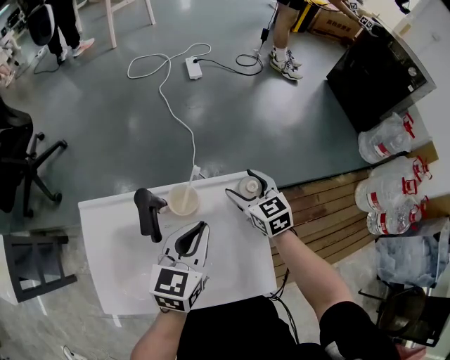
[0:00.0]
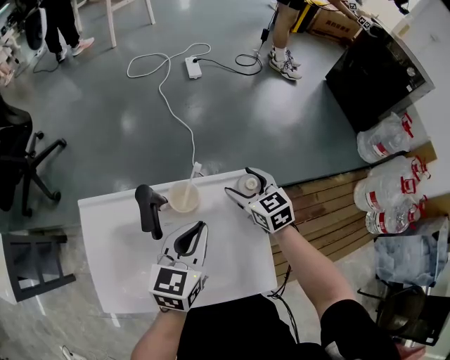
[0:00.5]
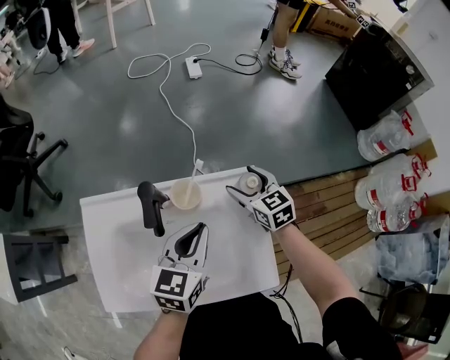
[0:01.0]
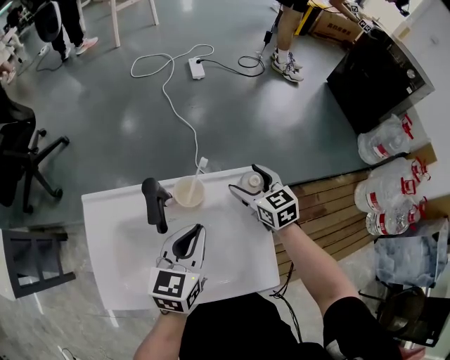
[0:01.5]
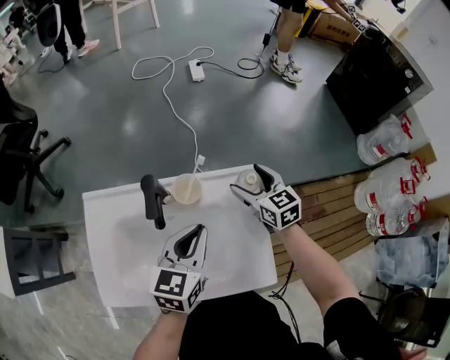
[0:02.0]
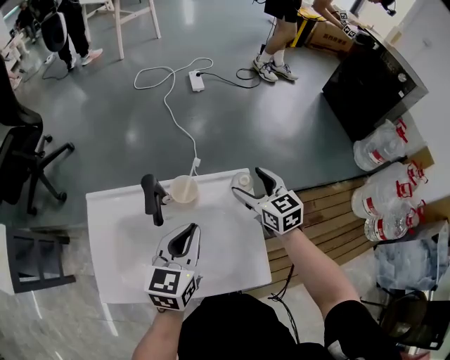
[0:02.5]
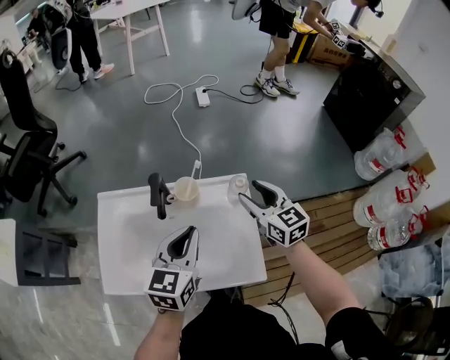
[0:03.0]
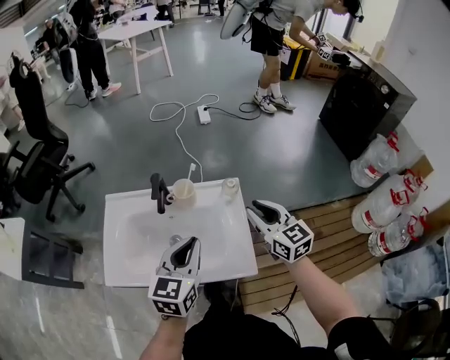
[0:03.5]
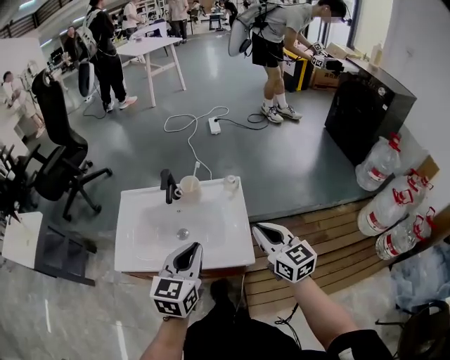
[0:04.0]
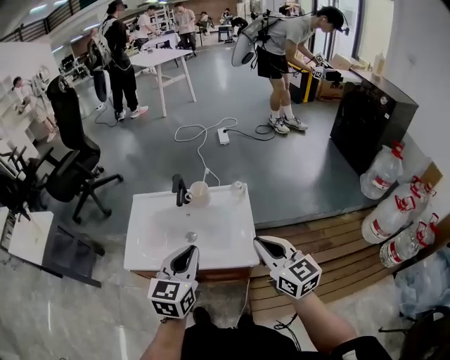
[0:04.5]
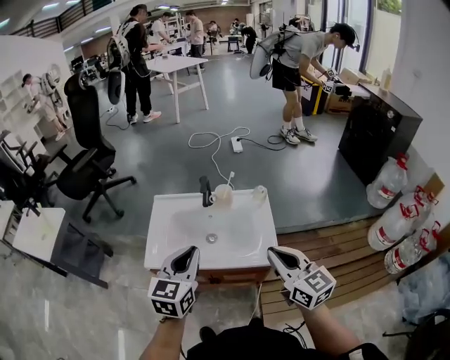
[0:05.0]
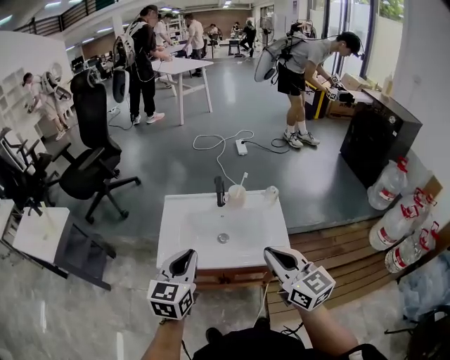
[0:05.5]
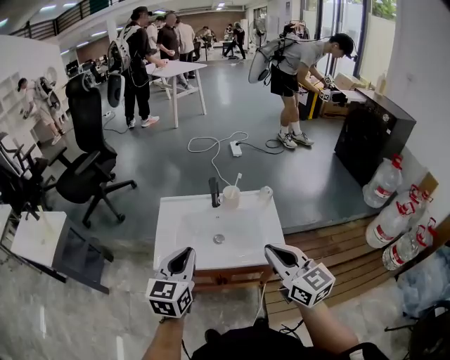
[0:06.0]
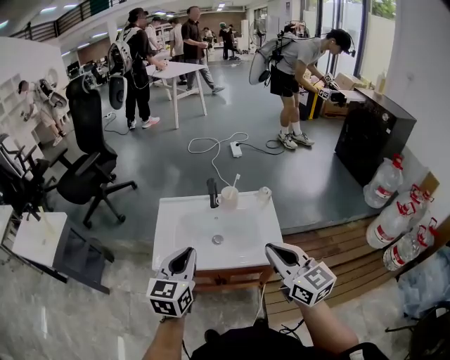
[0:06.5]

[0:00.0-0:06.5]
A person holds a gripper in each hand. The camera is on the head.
0:00.0 to 0:02.0: The grippers make only small movements.
0:02.0 to 0:04.5: Both grippers travel together backward and upward, some 35 cm. The right gripper rotates about 20 degrees, and closes up.
0:04.5 to 0:06.5: The right gripper goes approximately 15 cm to the left and upward. Meanwhile the left gripper goes roughly 15 cm to the left.

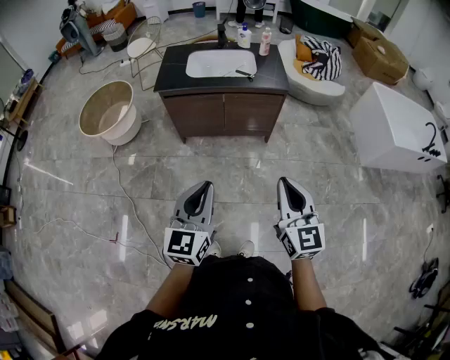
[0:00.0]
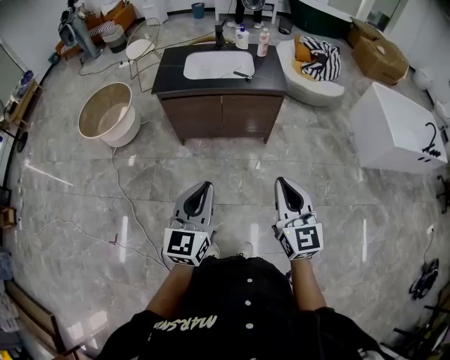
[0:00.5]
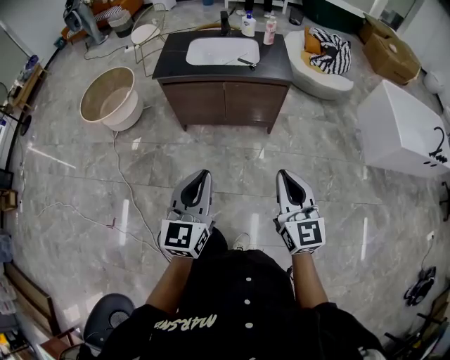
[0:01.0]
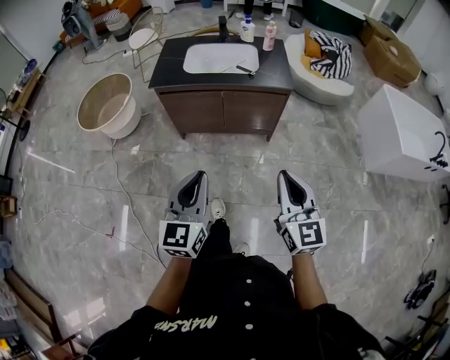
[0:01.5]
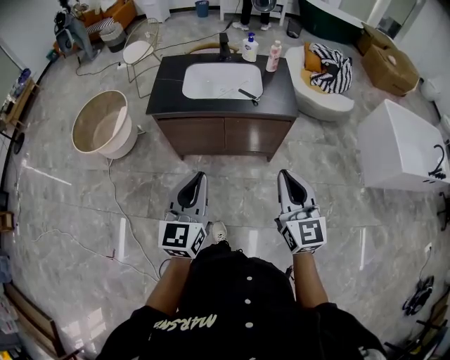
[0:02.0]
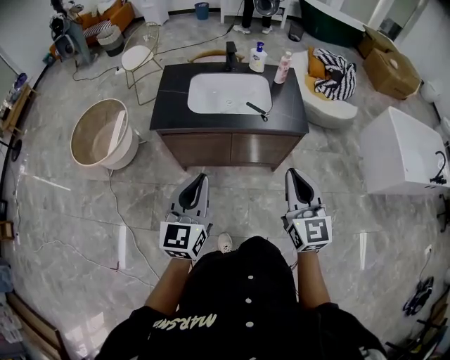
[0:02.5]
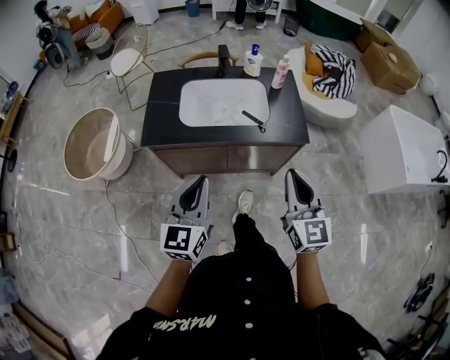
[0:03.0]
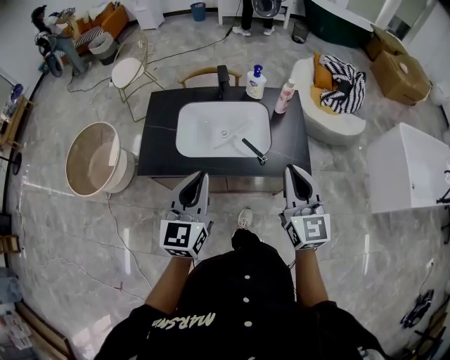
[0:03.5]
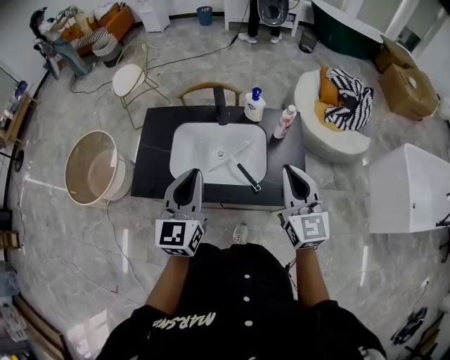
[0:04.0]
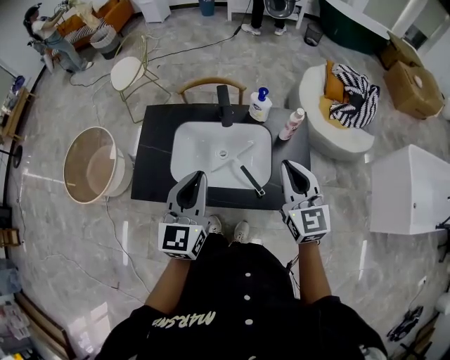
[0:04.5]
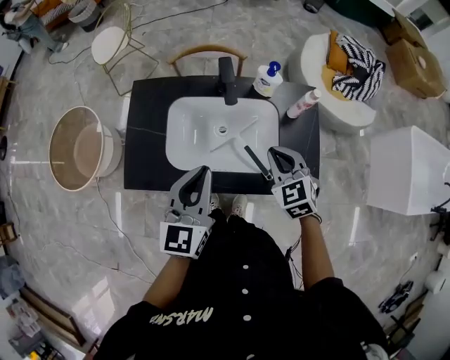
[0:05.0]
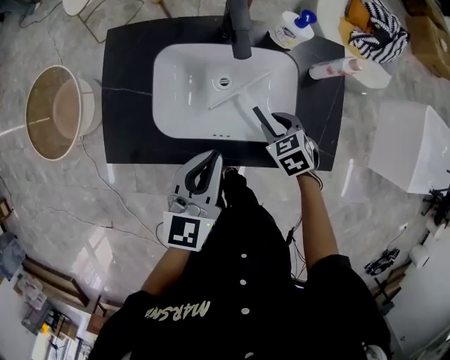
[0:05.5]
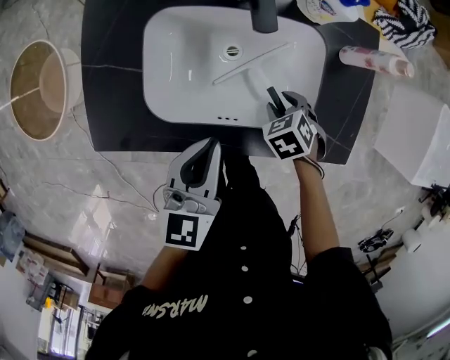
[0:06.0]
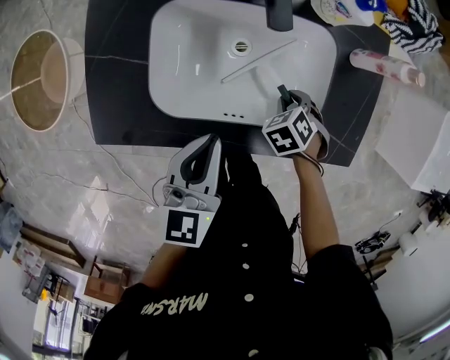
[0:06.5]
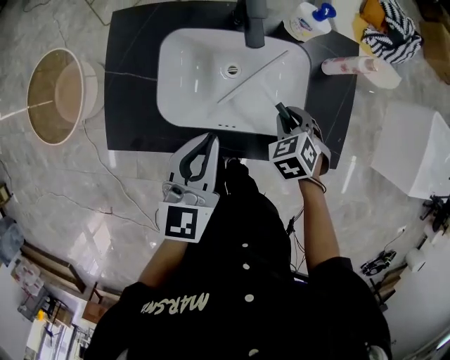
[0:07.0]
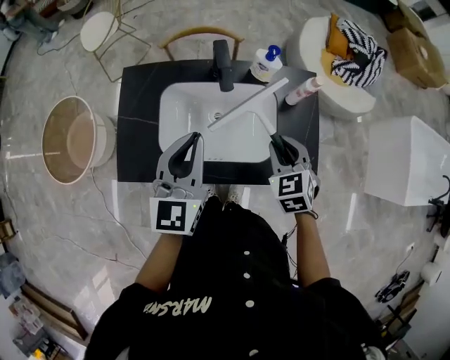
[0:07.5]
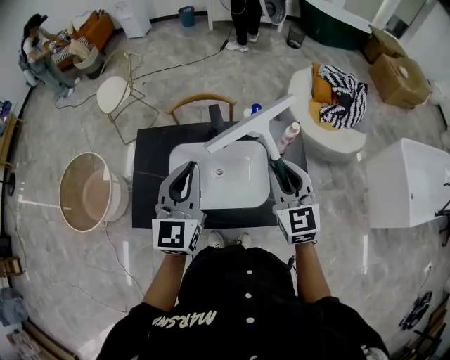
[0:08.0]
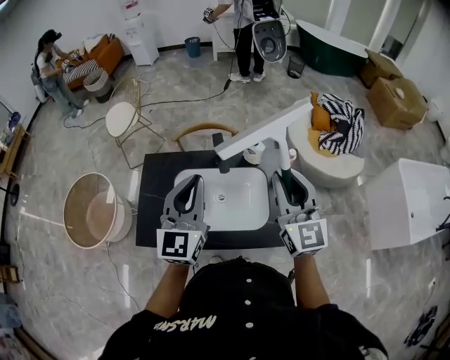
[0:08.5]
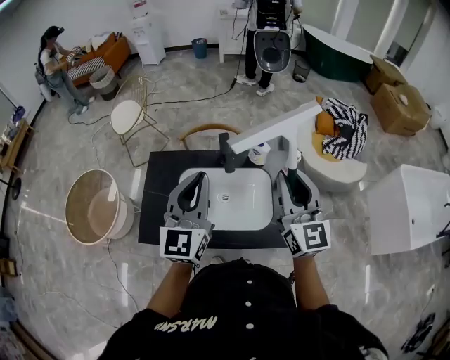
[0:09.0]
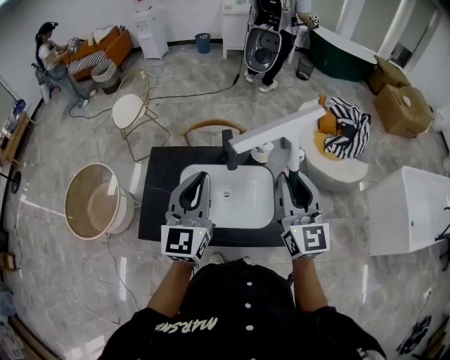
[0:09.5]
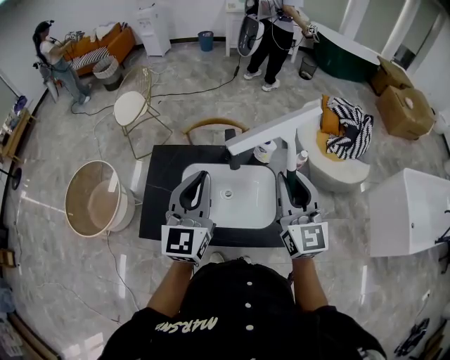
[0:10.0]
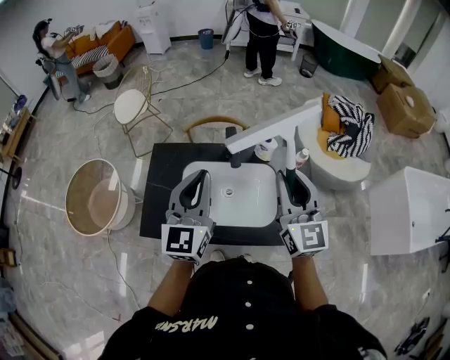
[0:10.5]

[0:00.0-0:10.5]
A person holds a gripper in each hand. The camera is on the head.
0:00.0 to 0:02.0: The grippers both shift forward by approximately 25 cm.
0:02.0 to 0:04.0: The two grippers travel together, forward, approximately 50 cm.
0:04.0 to 0:06.5: The right gripper travels downward by about 40 cm, and tips its fingers downward by approximately 80 degrees. The left gripper is displaced downward by approximately 25 cm, and swivels about 30 degrees.
0:06.5 to 0:08.5: The right gripper goes roughly 50 cm upward, and points its fingers some 90 degrees further upward; the left gripper shifts approximately 30 cm upward, and tips its fingers upward by roughly 30 degrees.
0:08.5 to 0:10.5: There are only small adjustments of the grippers.

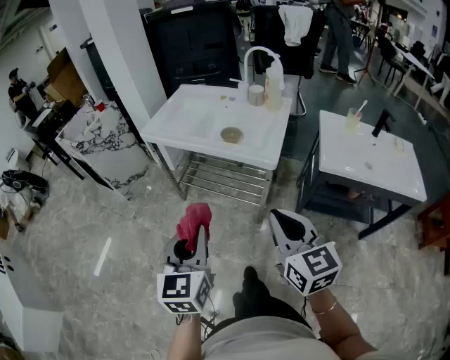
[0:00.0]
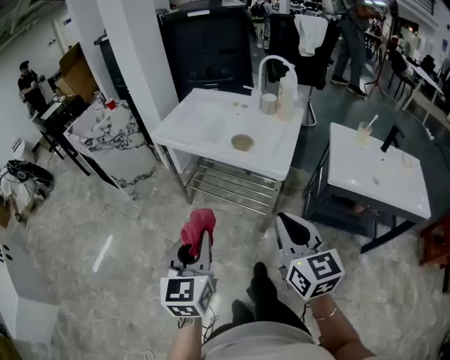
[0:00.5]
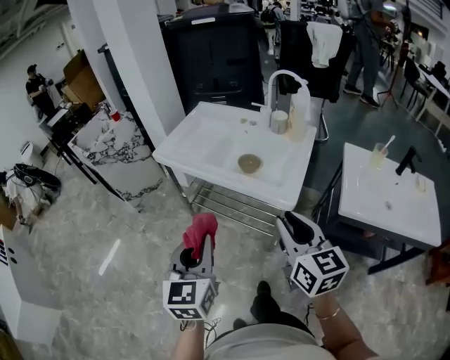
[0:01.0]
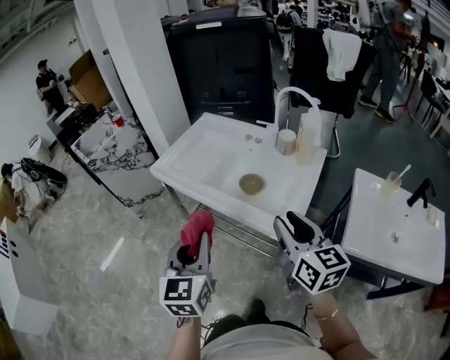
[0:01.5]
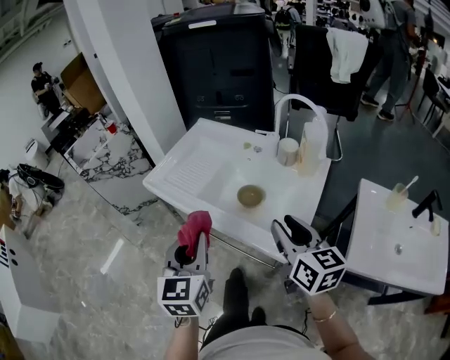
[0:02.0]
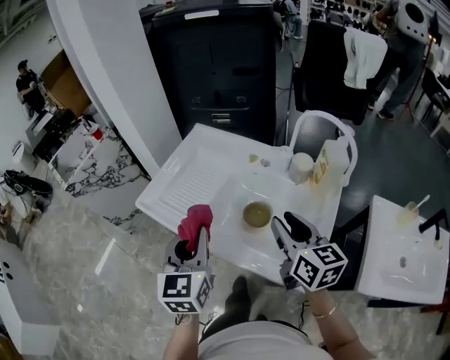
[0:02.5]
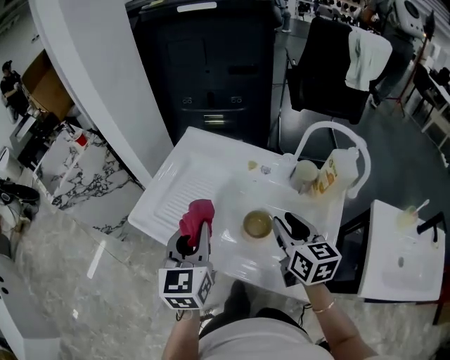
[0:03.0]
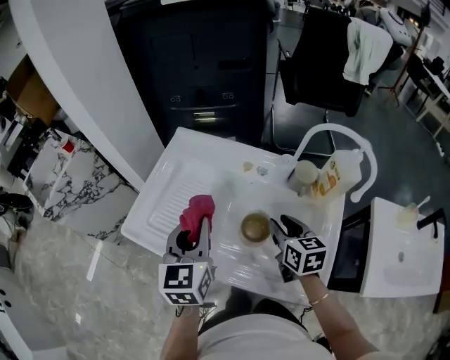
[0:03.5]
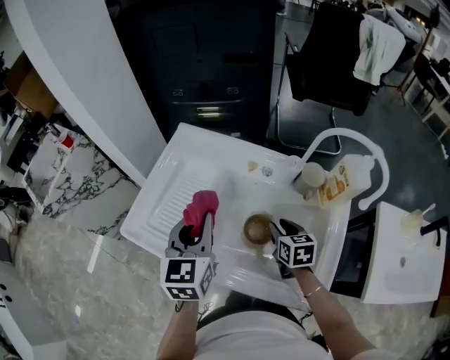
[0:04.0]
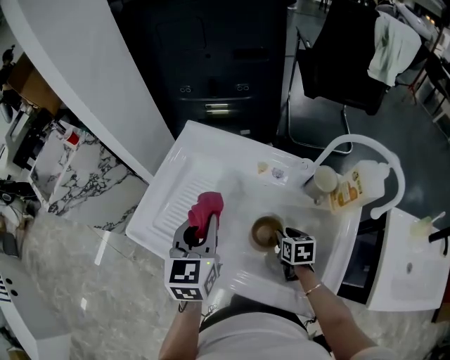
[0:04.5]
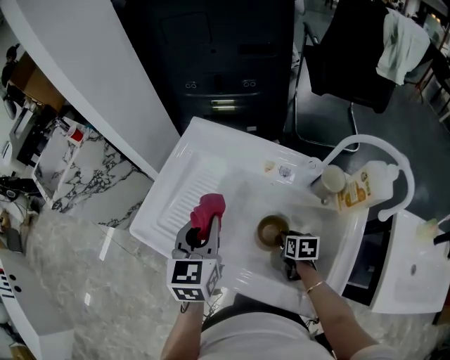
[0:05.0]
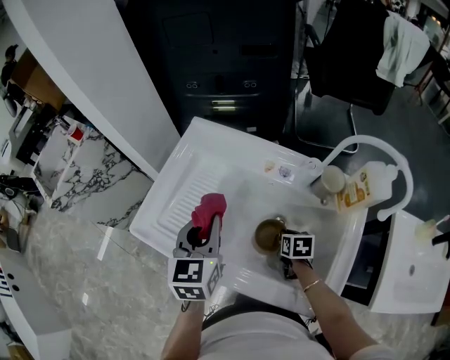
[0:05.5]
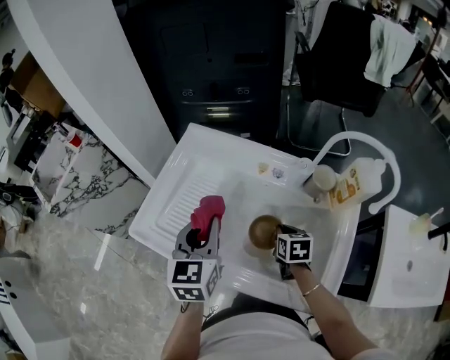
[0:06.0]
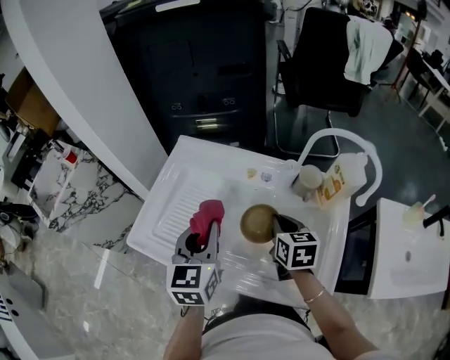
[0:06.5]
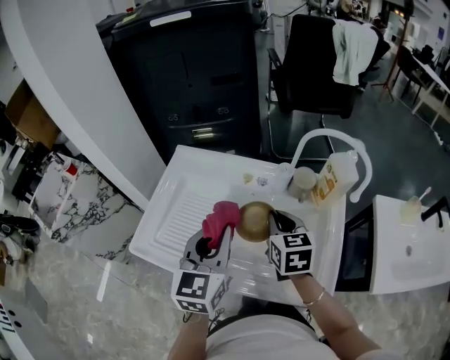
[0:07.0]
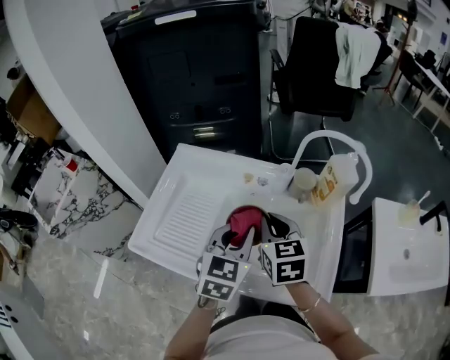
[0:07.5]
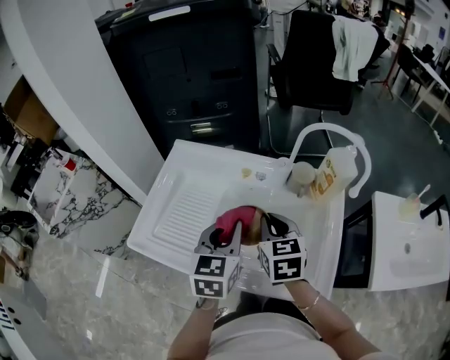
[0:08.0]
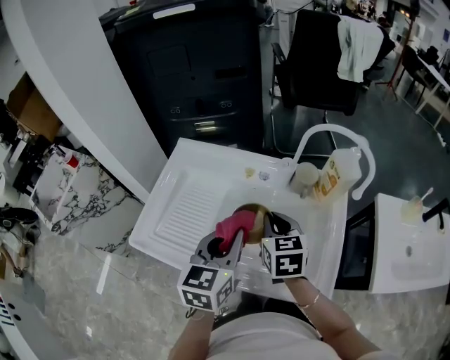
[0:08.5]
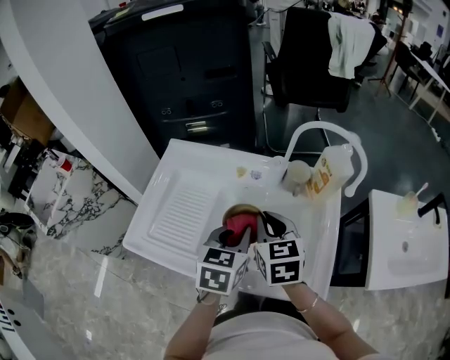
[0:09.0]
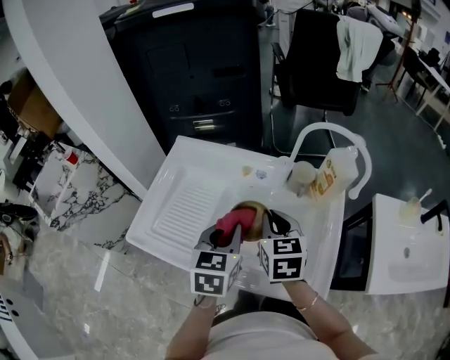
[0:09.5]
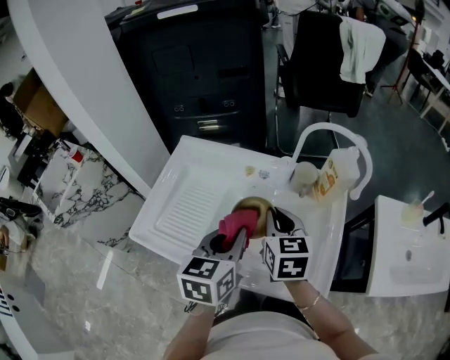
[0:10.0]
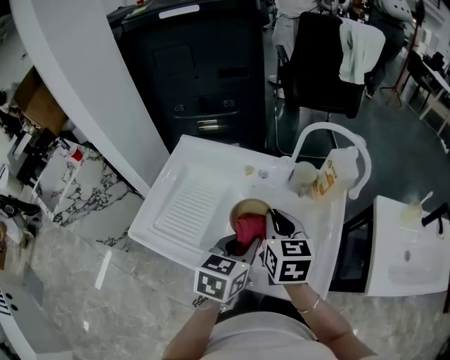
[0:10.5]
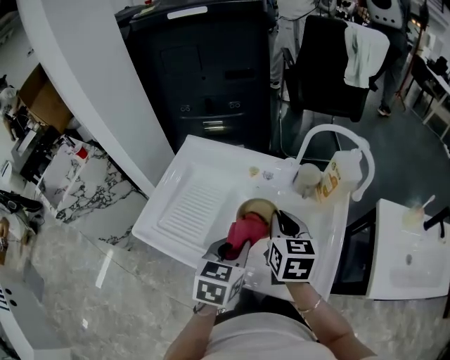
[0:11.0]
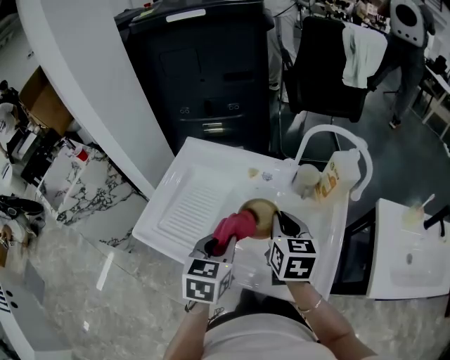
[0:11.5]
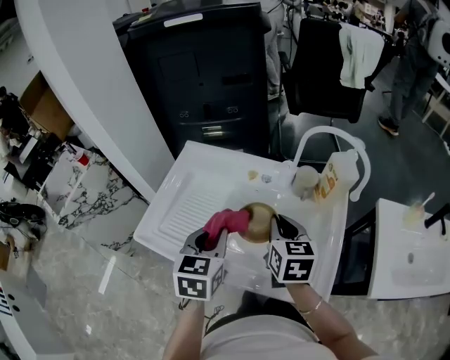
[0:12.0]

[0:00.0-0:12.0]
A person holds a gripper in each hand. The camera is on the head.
0:00.0 to 0:02.0: The two grippers go about 35 cm forward. The right gripper opens its fingers.
0:02.0 to 0:04.0: The left gripper goes approximately 35 cm forward, while the right gripper moves forward and downward, some 40 cm, and tips its fingers downward by about 30 degrees.
0:04.0 to 0:06.0: The right gripper reaches some 10 cm downward, then returns, and closes.
0:06.0 to 0:08.0: The left gripper goes approximately 10 cm to the right; the right gripper goes roughly 20 cm upward, and swivels some 20 degrees.
0:08.0 to 0:10.0: The grippers move only a little.
0:10.0 to 0:12.0: The left gripper shifts roughly 5 cm to the left.
